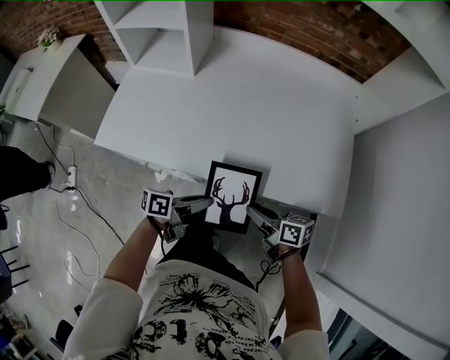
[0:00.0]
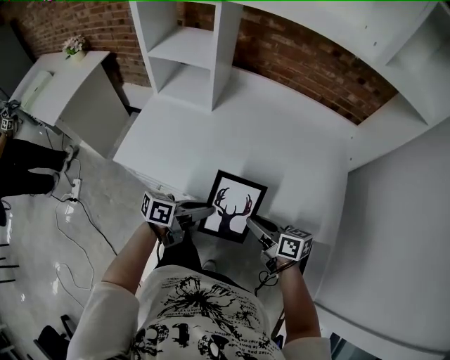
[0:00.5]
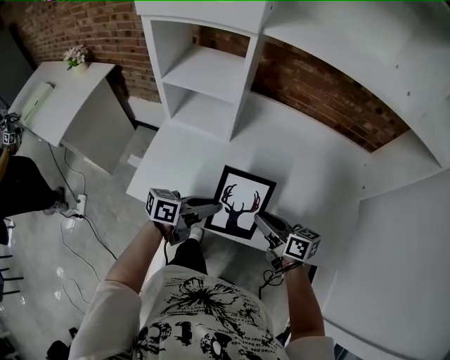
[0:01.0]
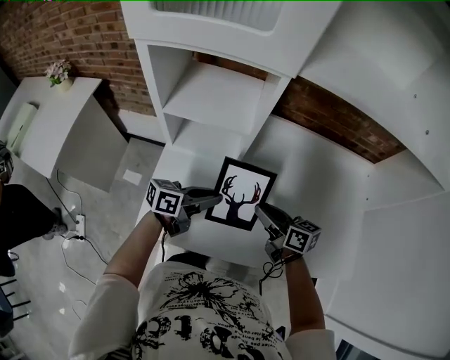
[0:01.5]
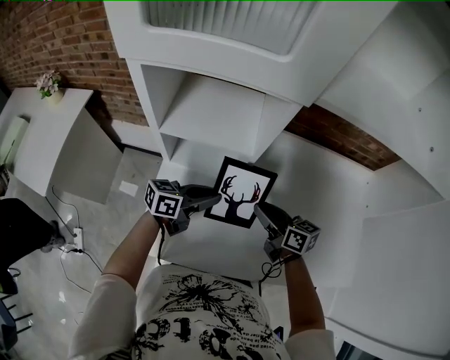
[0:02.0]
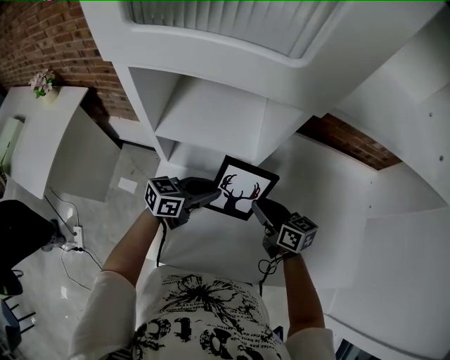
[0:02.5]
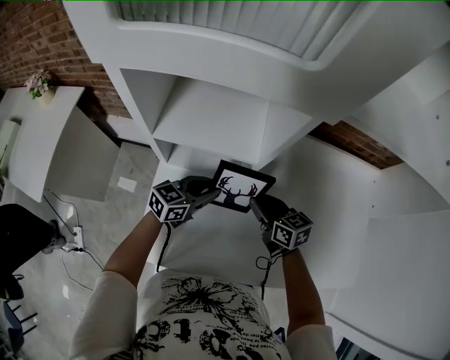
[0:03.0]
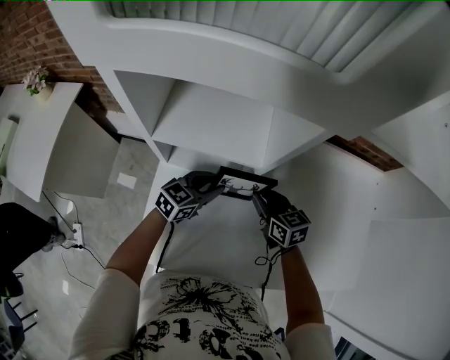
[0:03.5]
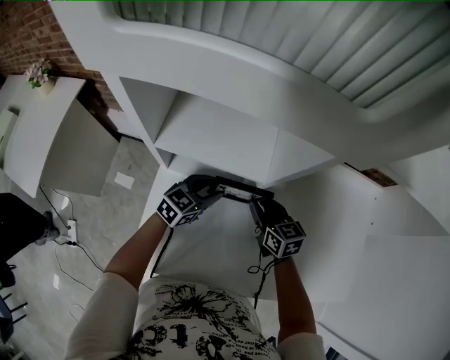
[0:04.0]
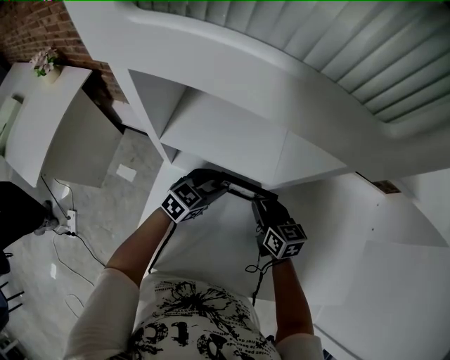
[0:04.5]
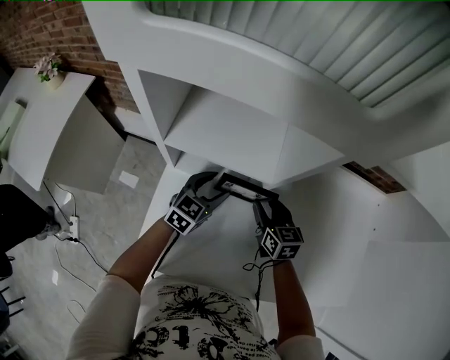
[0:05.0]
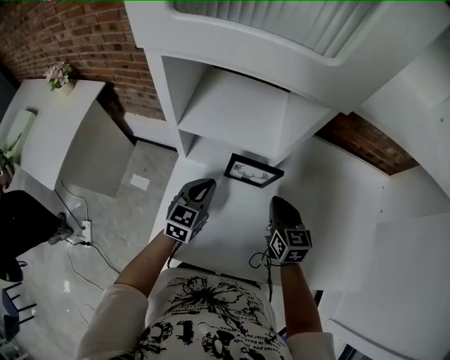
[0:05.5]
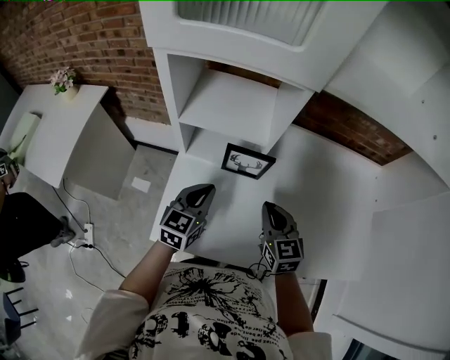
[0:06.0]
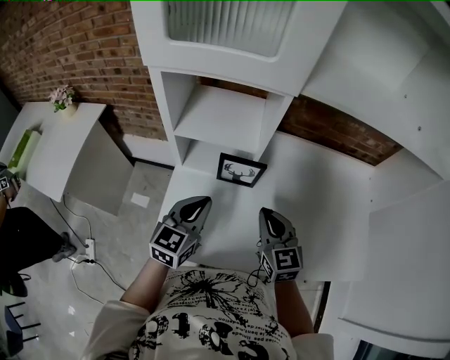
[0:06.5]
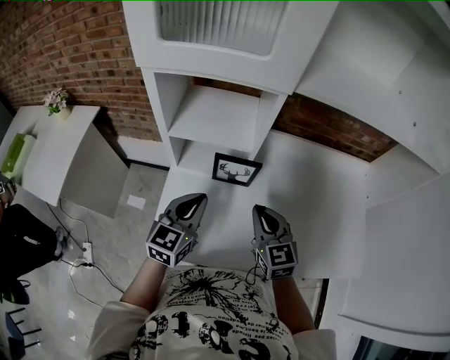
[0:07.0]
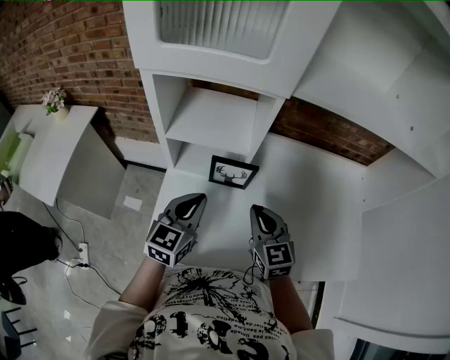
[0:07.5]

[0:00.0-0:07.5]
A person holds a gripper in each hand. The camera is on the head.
0:00.0 to 0:02.0: Both grippers travel together forward, to the left and upward, approximately 40 cm. The right gripper turns by some 20 degrees. Meanwhile the left gripper swivels some 30 degrees.
0:02.0 to 0:04.0: The right gripper heads forward, downward and to the left, covering approximately 15 cm, and changes its angle by roughly 30 degrees; the left gripper is displaced forward and downward by approximately 15 cm, and turns by approximately 30 degrees.
0:04.0 to 0:05.5: The left gripper goes some 10 cm backward and to the left, swivels about 30 degrees, and closes up. The right gripper shifts about 5 cm backward, and closes its fingers.
0:05.5 to 0:07.5: The two grippers go approximately 15 cm upward and backward.

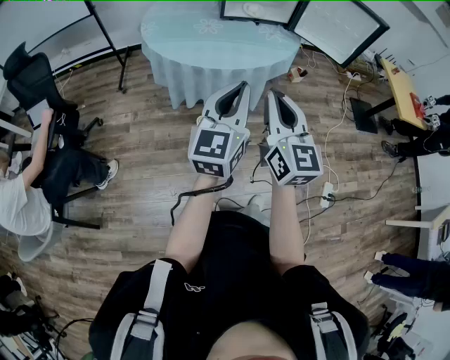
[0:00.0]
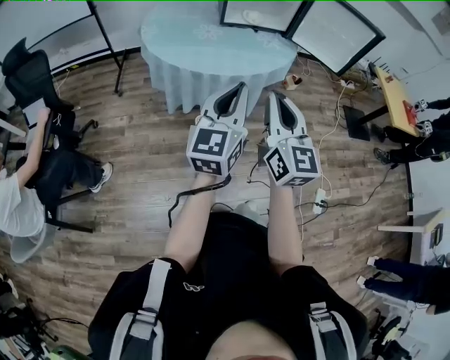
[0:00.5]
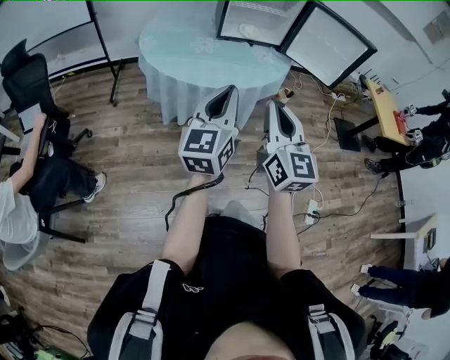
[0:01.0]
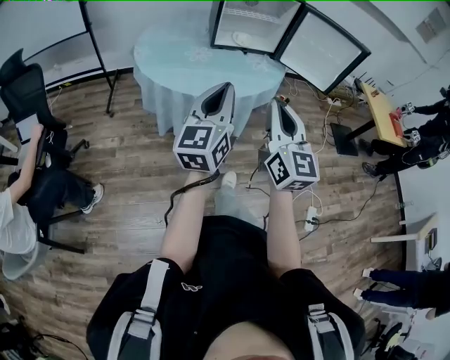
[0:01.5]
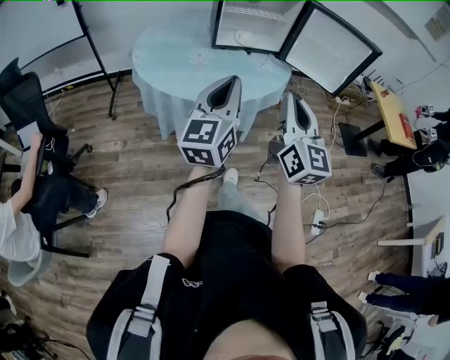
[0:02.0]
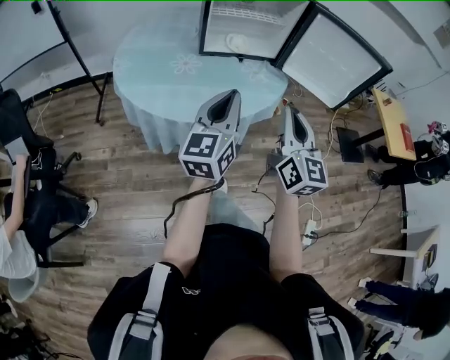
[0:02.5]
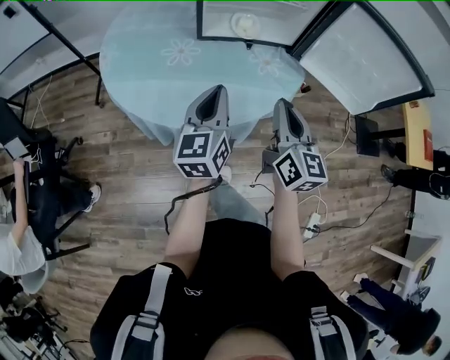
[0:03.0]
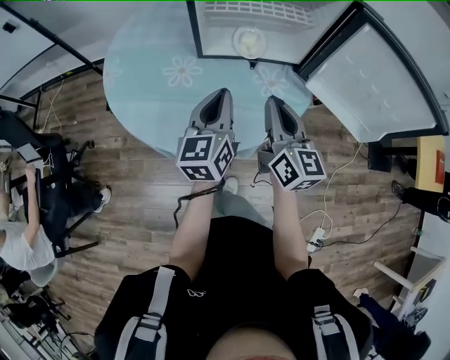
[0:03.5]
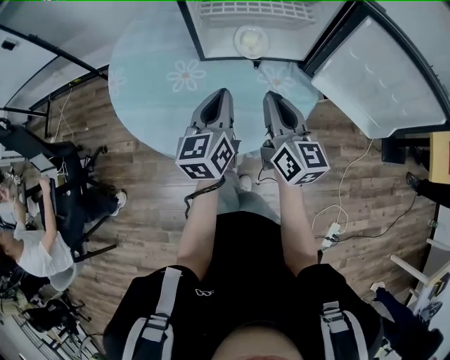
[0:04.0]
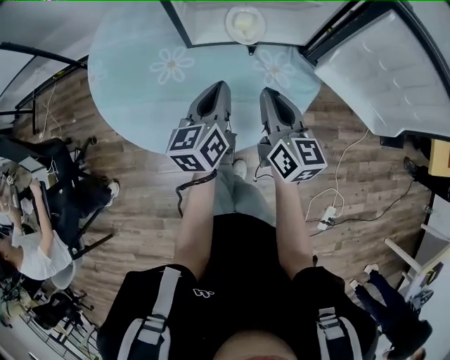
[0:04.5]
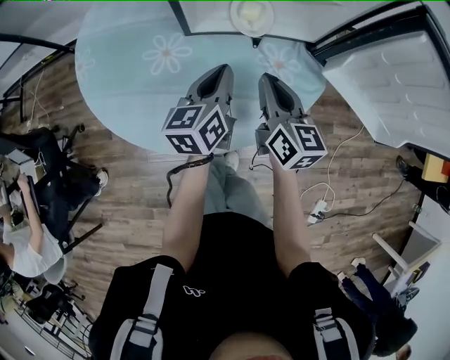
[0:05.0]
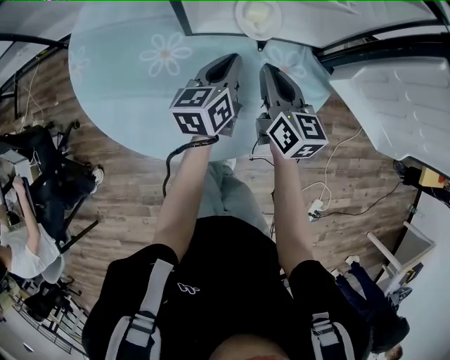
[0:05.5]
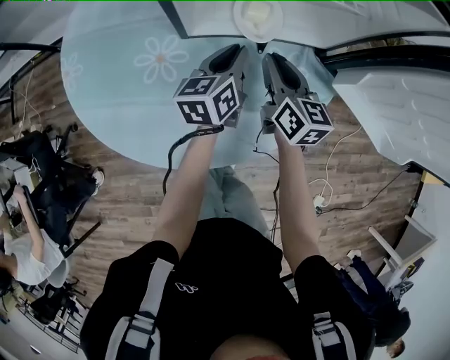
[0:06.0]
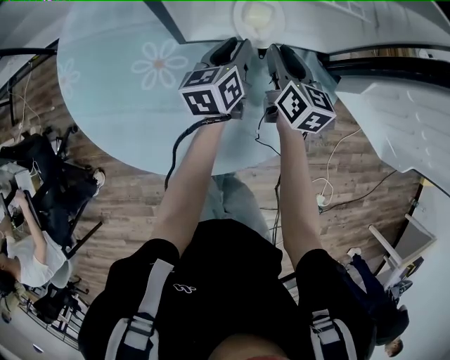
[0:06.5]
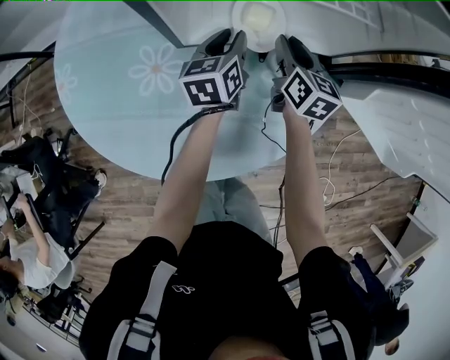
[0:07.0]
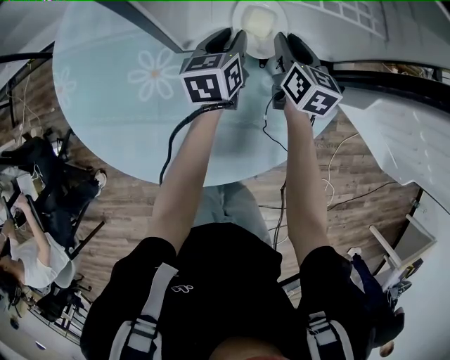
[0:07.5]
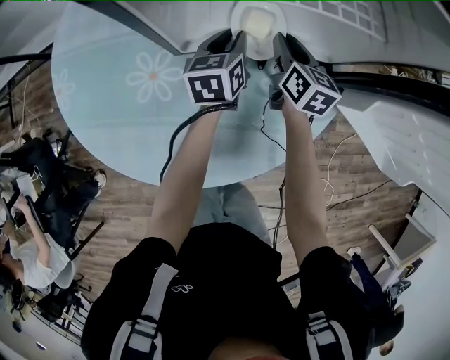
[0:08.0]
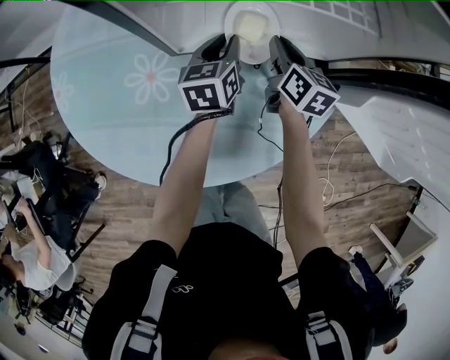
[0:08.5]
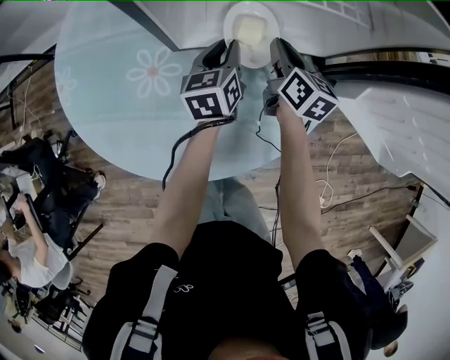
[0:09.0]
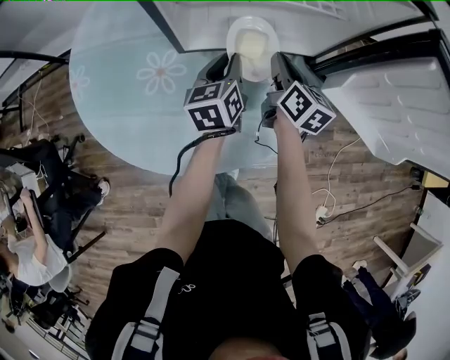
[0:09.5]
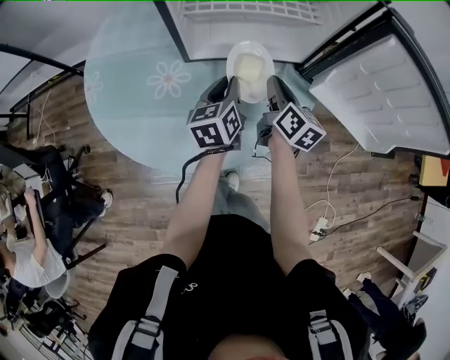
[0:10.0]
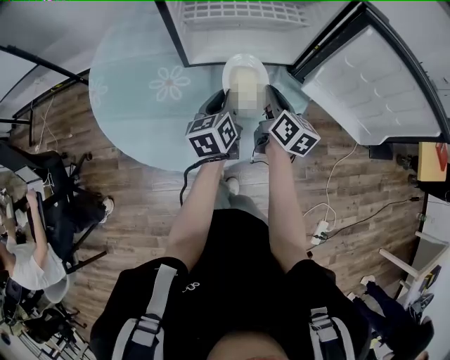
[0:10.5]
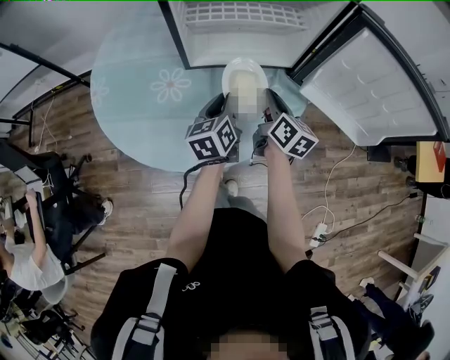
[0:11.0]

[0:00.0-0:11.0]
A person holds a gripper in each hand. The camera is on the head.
0:00.0 to 0:02.0: Both grippers travel together forward, about 10 cm.
0:02.0 to 0:03.5: The two grippers go some 40 cm forward. The left gripper changes its angle by roughly 20 degrees. Meanwhile the right gripper turns by about 30 degrees.
0:03.5 to 0:05.5: The grippers both shift forward and downward by approximately 20 cm. The left gripper rotates about 20 degrees.
0:05.5 to 0:07.5: The two grippers go some 15 cm forward and downward. The right gripper opens. Meanwhile the left gripper opens.
0:07.5 to 0:09.0: The grippers move only a little.
0:09.0 to 0:11.0: The grippers both shift backward and upward by roughly 20 cm.

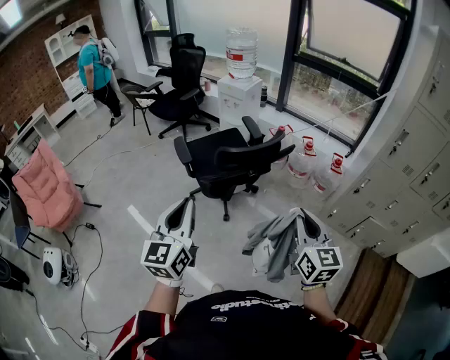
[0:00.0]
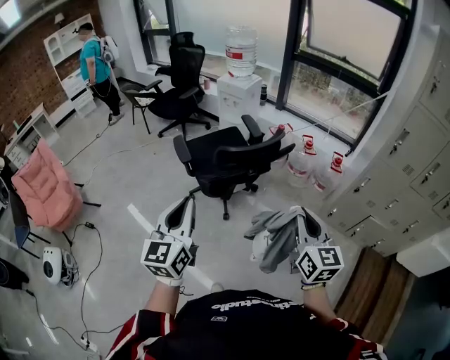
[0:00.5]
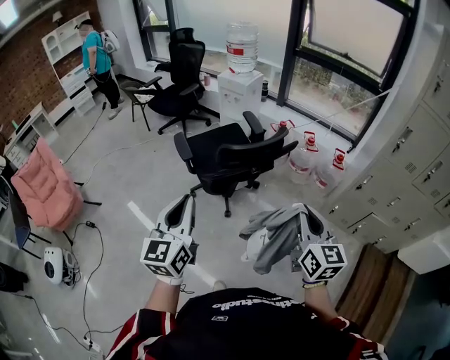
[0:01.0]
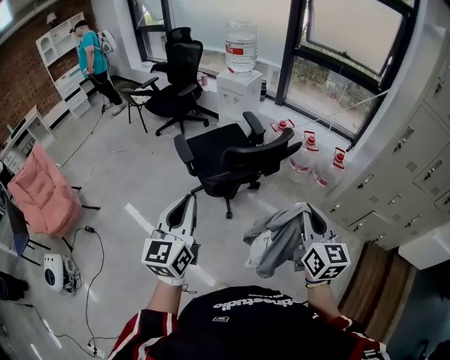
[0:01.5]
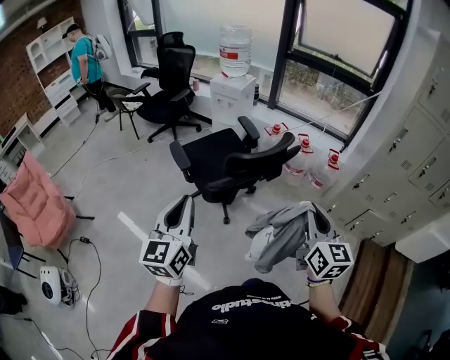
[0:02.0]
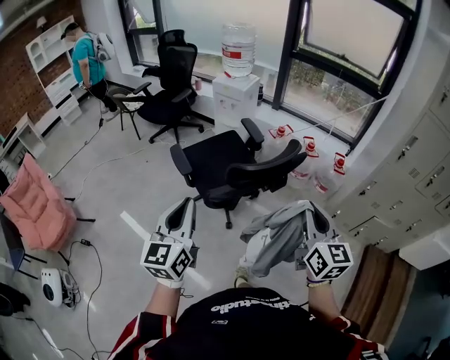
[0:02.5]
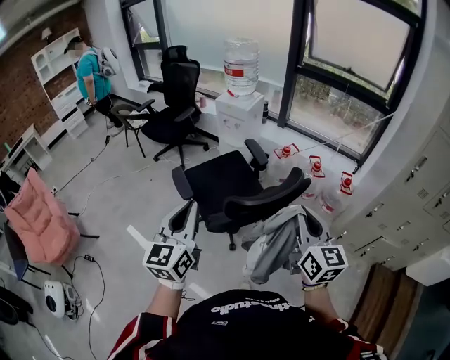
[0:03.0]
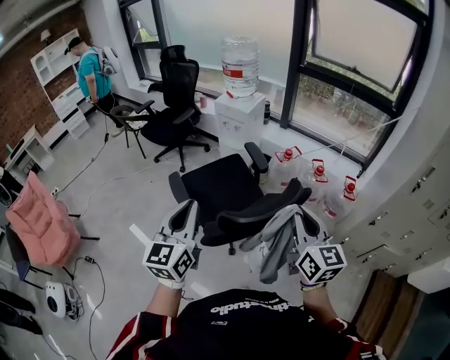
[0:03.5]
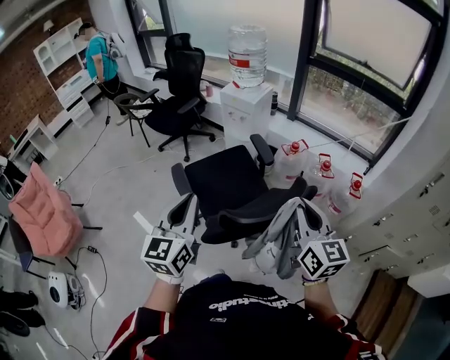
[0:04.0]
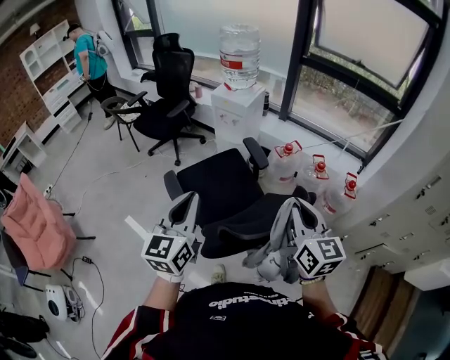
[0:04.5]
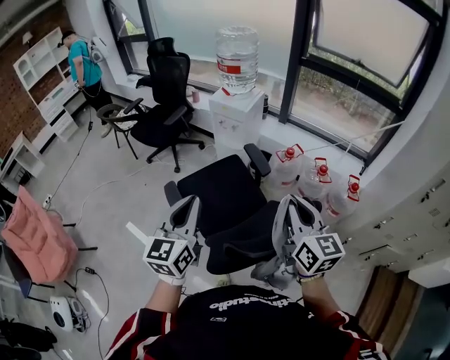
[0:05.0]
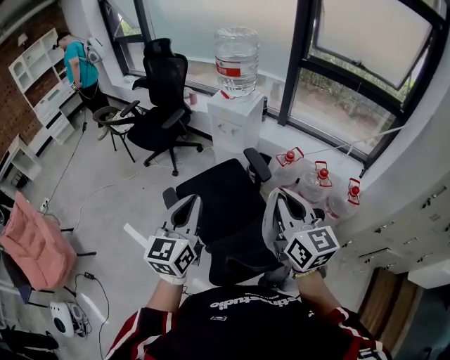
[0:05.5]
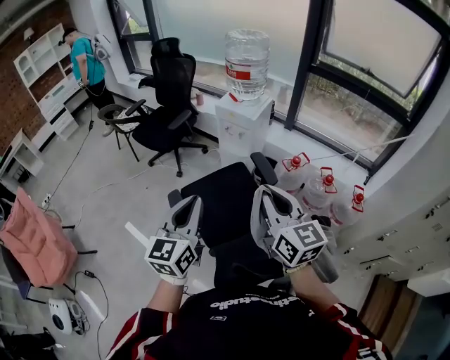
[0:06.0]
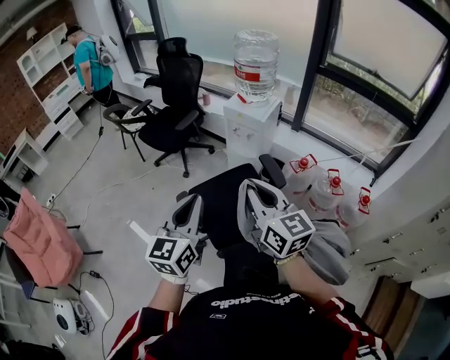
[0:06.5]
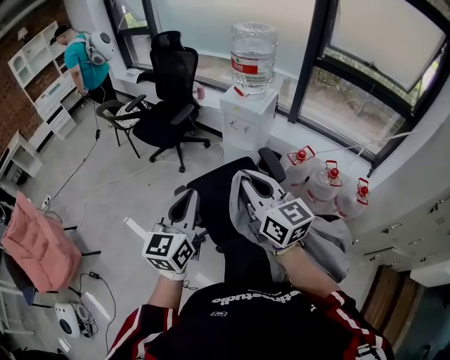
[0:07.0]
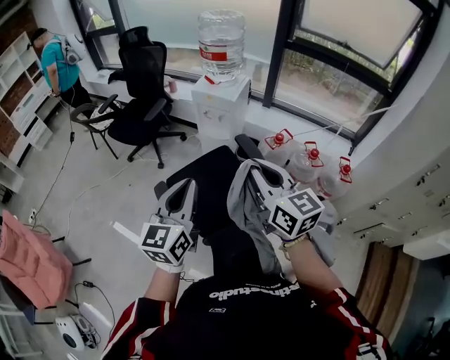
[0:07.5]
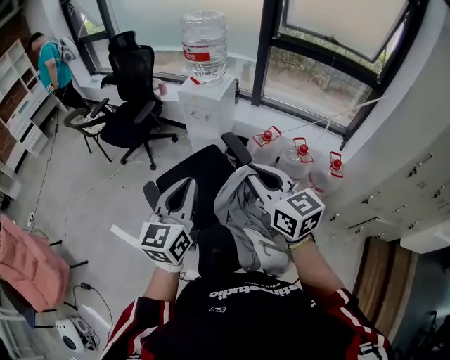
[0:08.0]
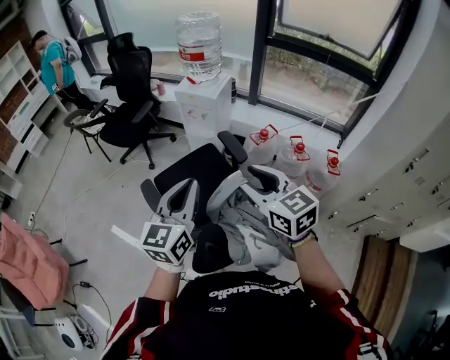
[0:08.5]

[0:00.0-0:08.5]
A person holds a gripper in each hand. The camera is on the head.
0:00.0 to 0:02.0: The right gripper travels to the left by about 5 cm. The left gripper is displaced to the left and forward by approximately 10 cm.
0:02.0 to 0:04.0: The grippers both shift forward by roughly 30 cm.
0:04.0 to 0:06.5: The grippers both shift forward and to the left by about 30 cm.
0:06.5 to 0:08.5: The left gripper heads to the right, covering about 15 cm; the right gripper moves to the right and backward, approximately 15 cm, and opens up.
